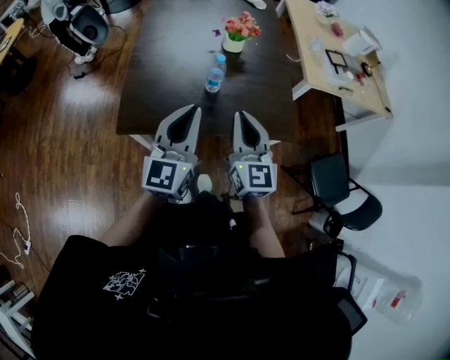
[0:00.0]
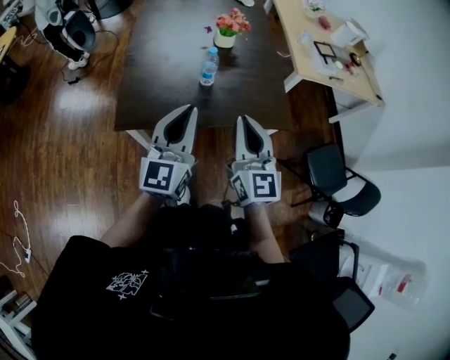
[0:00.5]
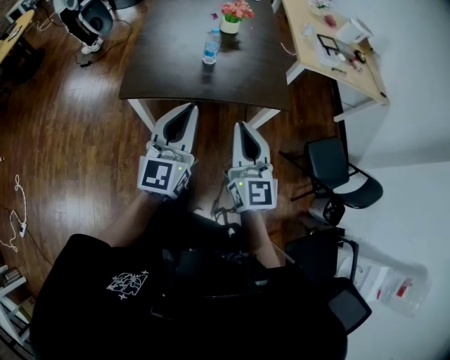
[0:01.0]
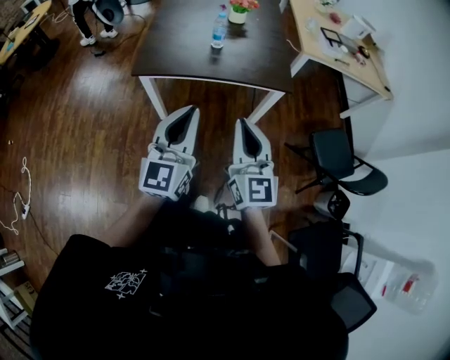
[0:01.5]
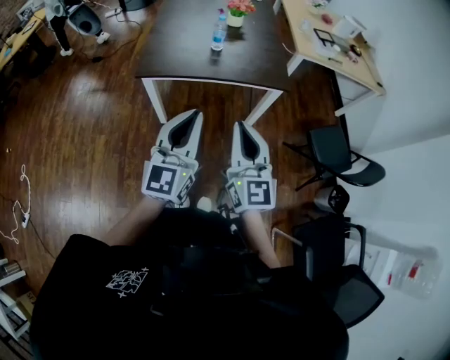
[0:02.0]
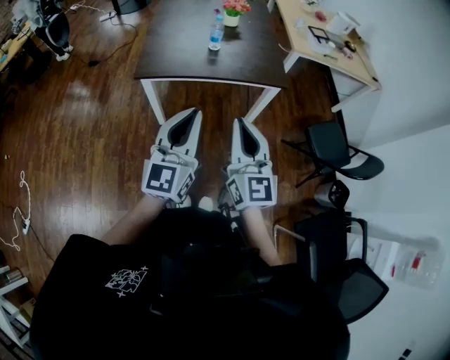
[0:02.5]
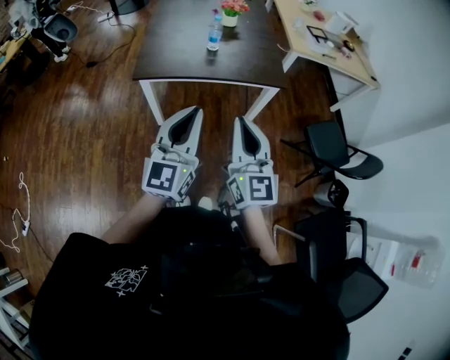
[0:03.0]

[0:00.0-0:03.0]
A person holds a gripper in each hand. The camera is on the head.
0:00.0 to 0:01.5: Both grippers move backward, some 30 cm.
0:01.5 to 0:03.0: The right gripper ends up about 5 cm from where it was; the left gripper shifts by approximately 5 cm.

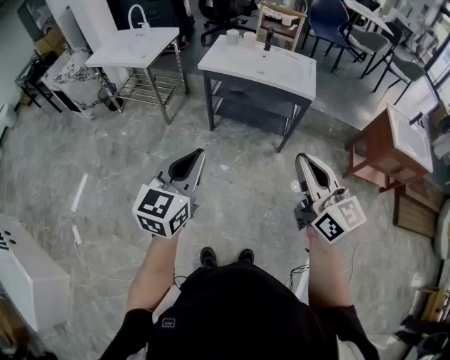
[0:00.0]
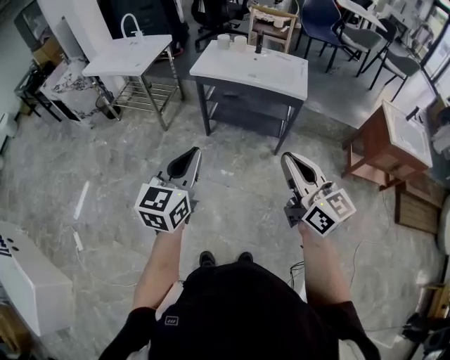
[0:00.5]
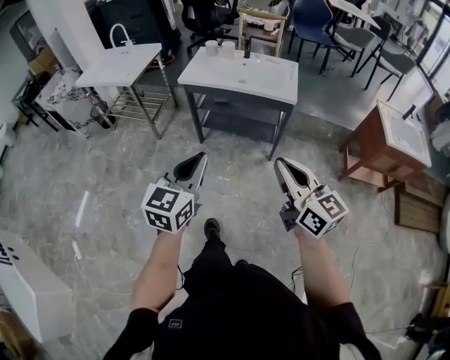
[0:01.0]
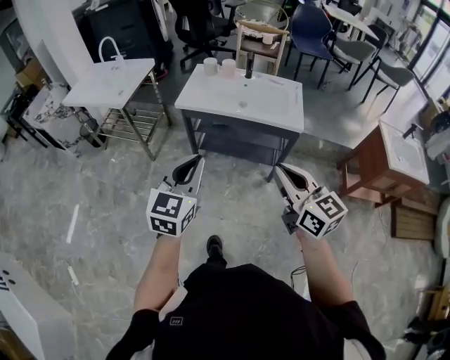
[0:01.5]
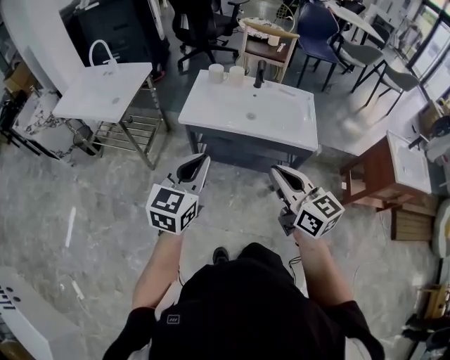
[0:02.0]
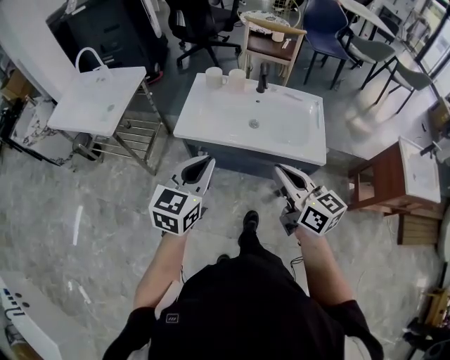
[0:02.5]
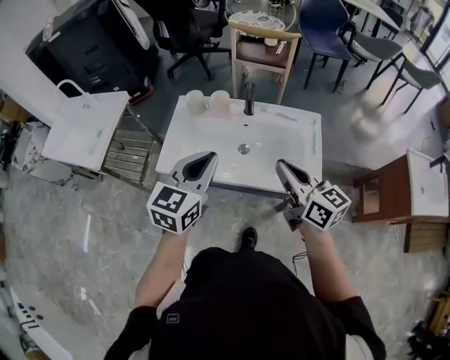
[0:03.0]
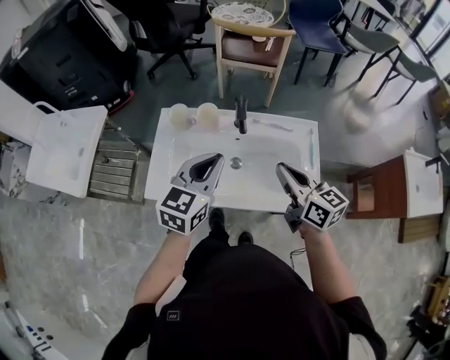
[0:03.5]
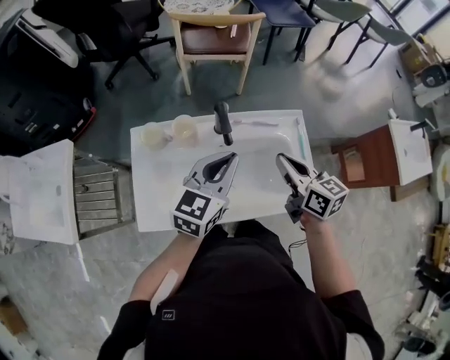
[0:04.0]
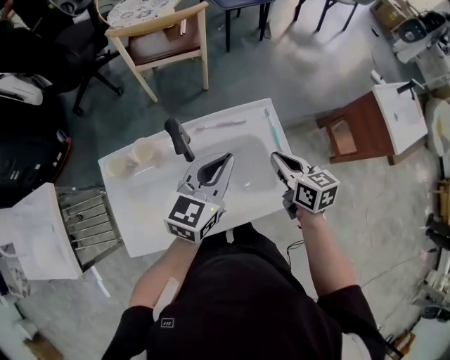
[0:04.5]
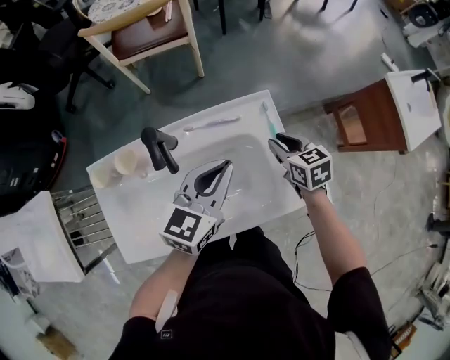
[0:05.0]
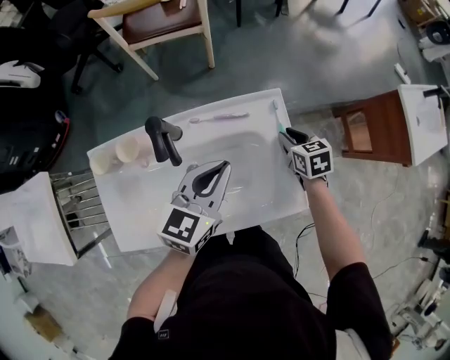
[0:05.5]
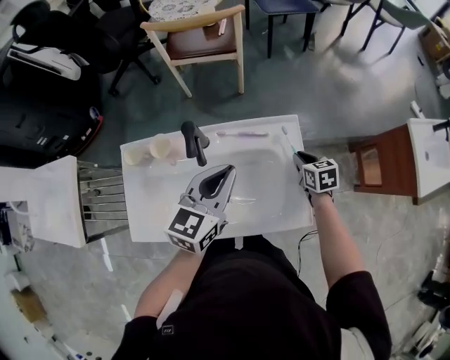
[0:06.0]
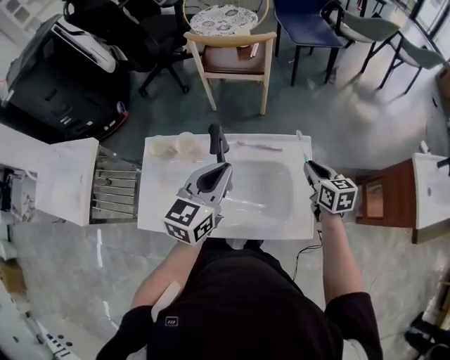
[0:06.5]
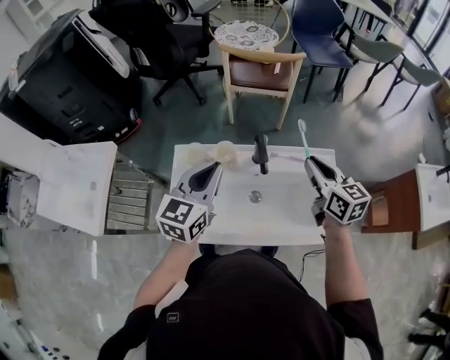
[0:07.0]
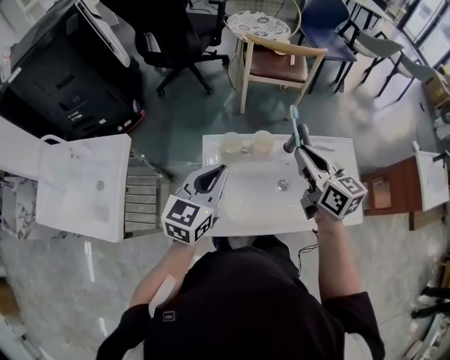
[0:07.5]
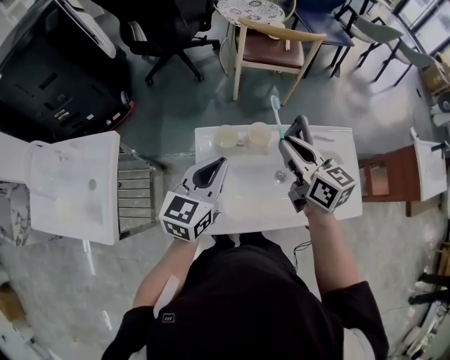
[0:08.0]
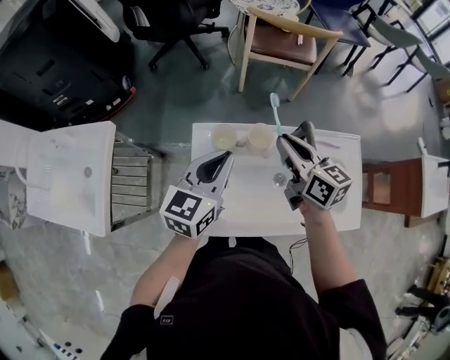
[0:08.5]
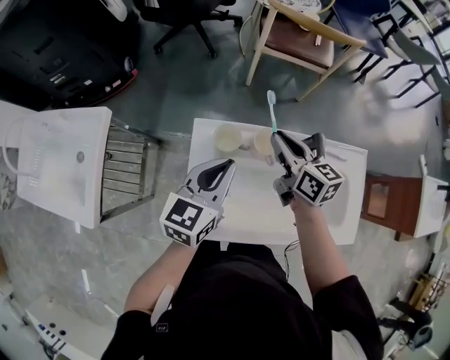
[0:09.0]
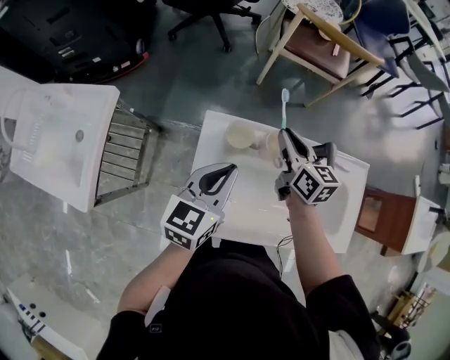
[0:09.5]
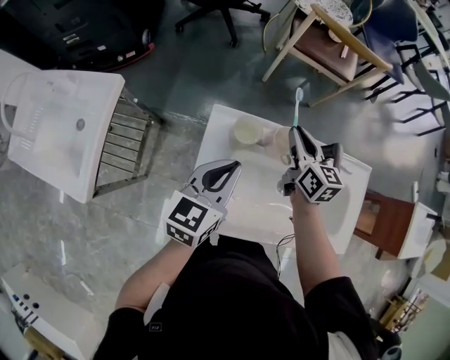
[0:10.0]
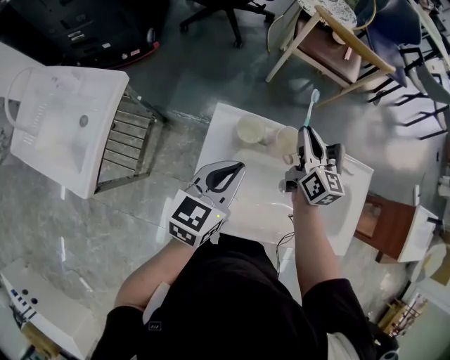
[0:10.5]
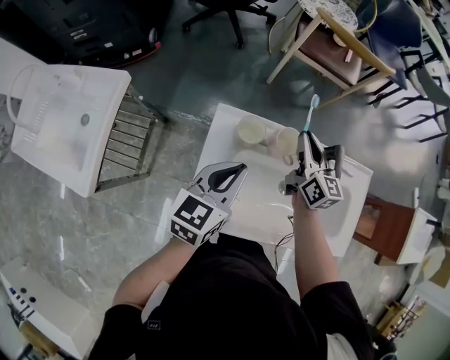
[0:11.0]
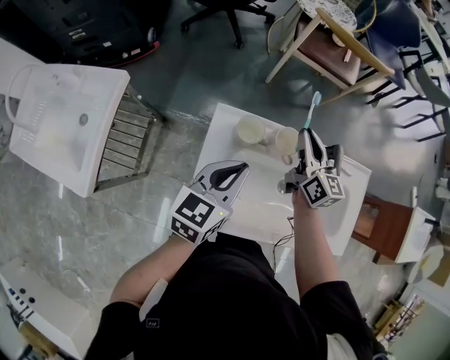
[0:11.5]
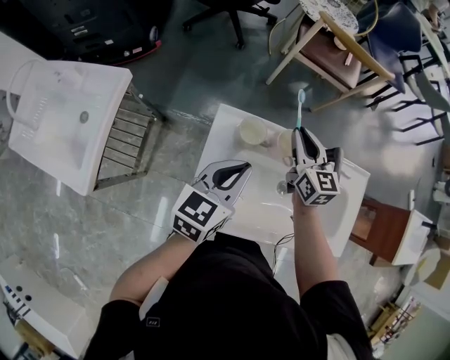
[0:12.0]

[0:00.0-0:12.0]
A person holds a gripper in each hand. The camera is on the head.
0:00.0 to 0:02.0: The two grippers go about 35 cm forward.
0:02.0 to 0:04.0: The pair of grippers is taken forward, approximately 50 cm. The left gripper changes its angle by about 30 degrees. Meanwhile the right gripper turns by roughly 30 degrees.
0:04.0 to 0:06.0: The right gripper moves downward, to the right and forward, some 30 cm, and turns by about 30 degrees; the left gripper moves to the right and forward, approximately 10 cm.
0:06.0 to 0:08.0: The left gripper moves to the left, some 35 cm; the right gripper travels to the left and upward by approximately 50 cm, and tilts its fingers about 40 degrees upward.
0:08.0 to 0:10.0: The right gripper moves downward and forward, roughly 20 cm. The left gripper shifts about 5 cm downward.
0:10.0 to 0:12.0: There are only small adjustments of the grippers.

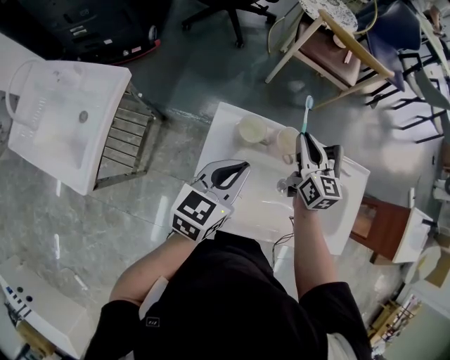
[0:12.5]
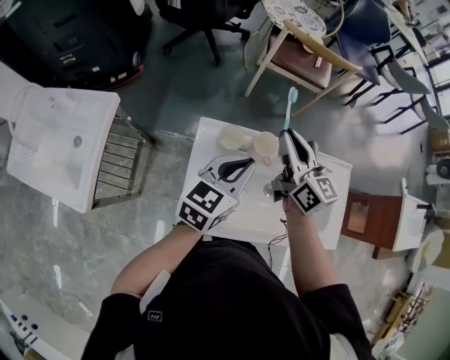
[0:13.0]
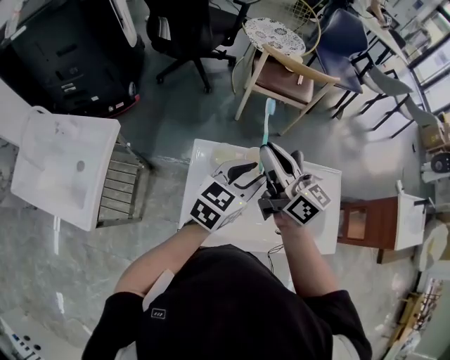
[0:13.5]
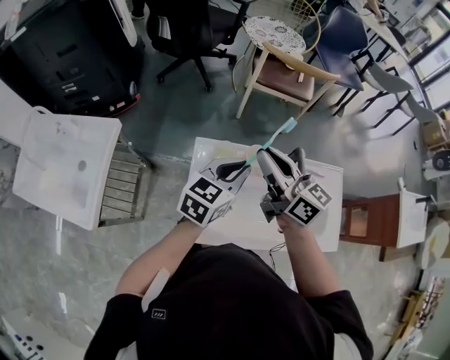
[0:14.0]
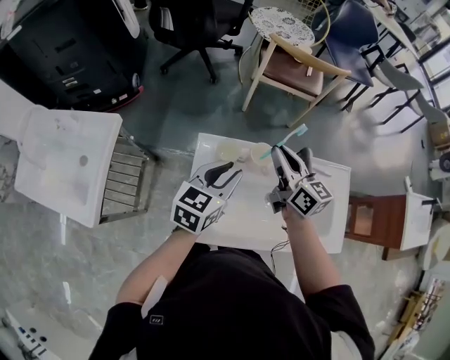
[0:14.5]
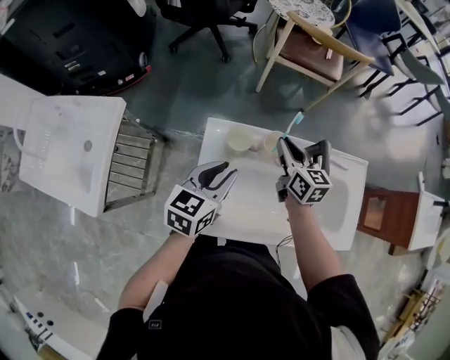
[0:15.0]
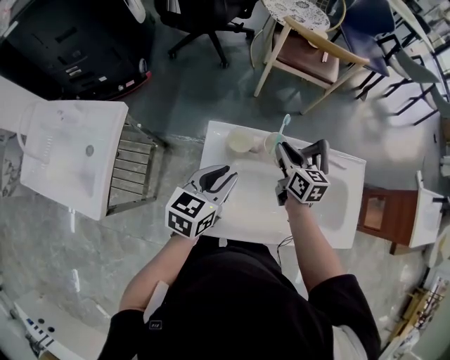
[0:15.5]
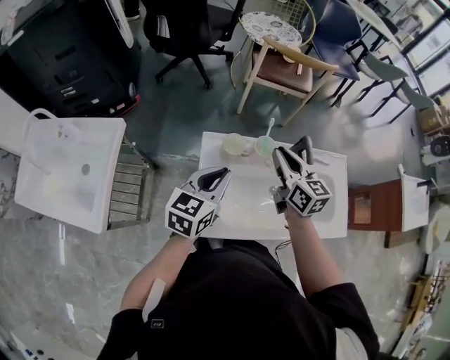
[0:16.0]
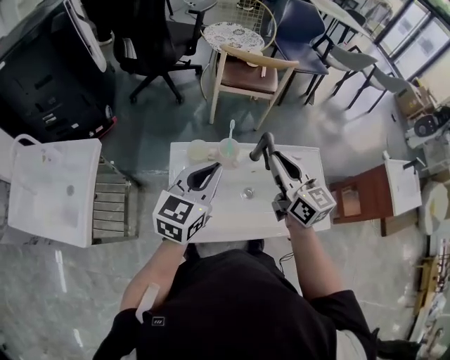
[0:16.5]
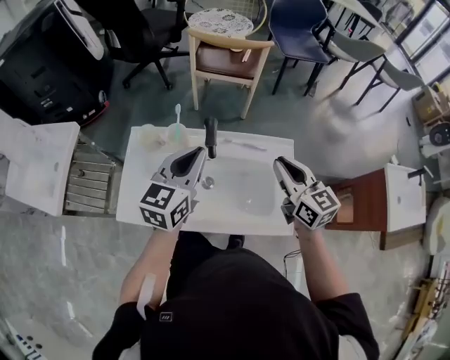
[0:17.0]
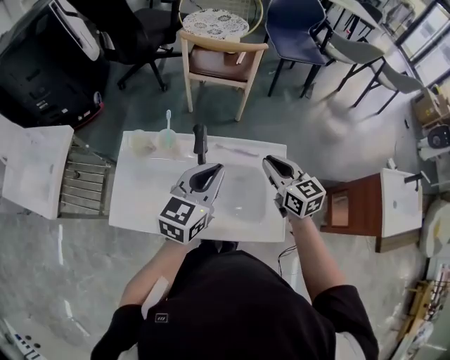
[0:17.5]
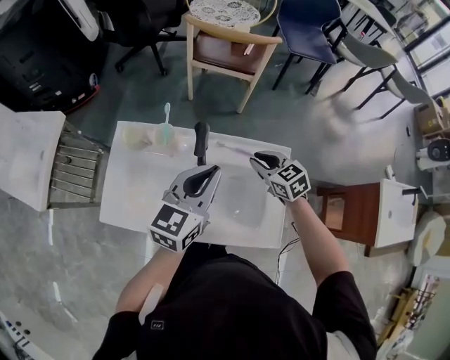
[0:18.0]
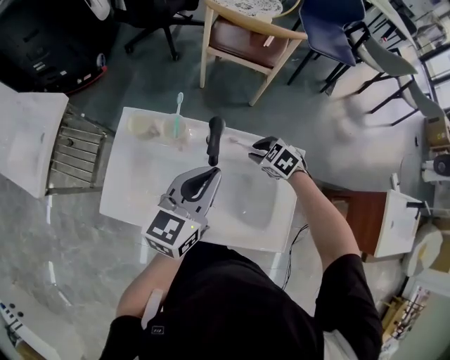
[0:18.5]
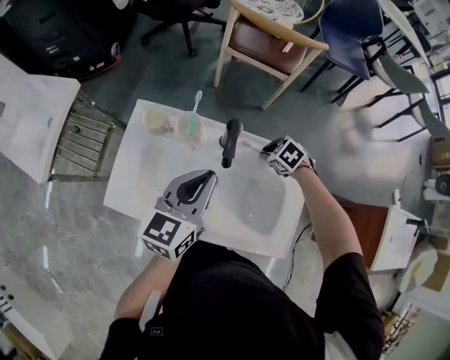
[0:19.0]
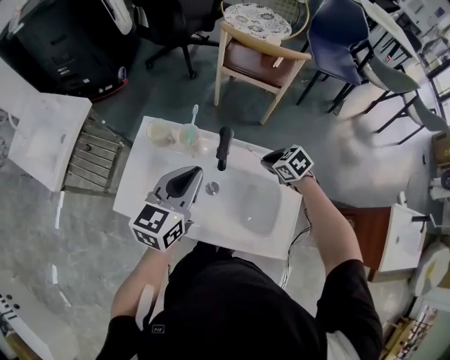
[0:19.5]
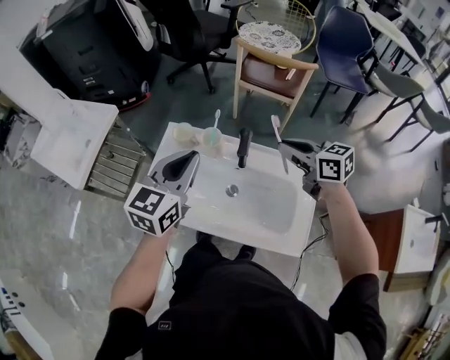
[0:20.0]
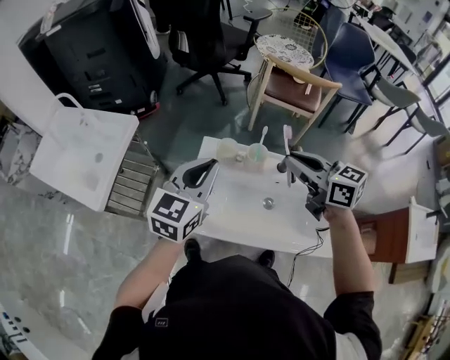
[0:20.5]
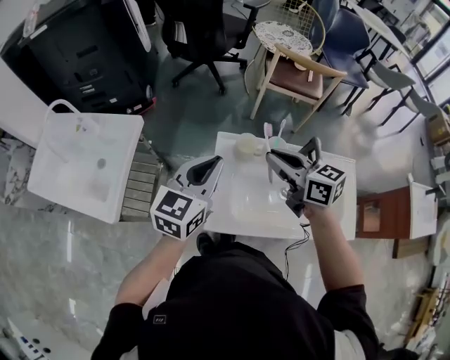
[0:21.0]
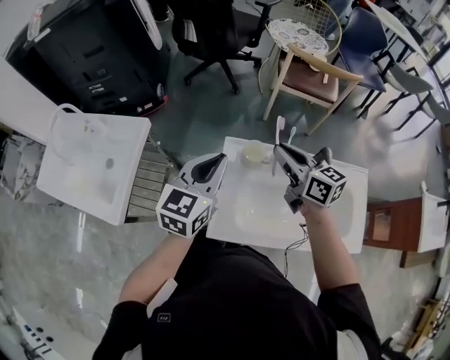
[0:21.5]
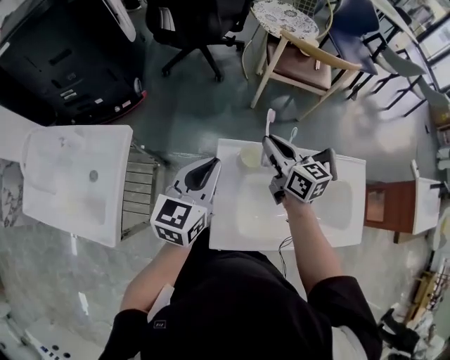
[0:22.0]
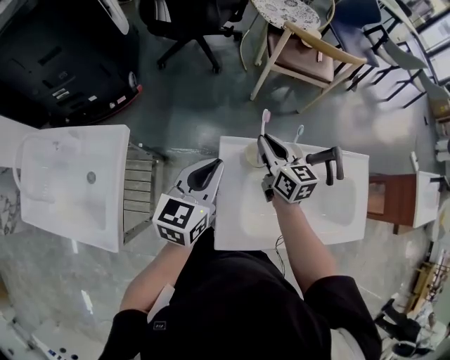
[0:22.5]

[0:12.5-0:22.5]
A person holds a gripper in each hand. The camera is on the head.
0:12.5 to 0:14.5: The left gripper reaches roughly 10 cm to the right, then returns, and opens. The right gripper is displaced upward by approximately 10 cm.
0:14.5 to 0:16.5: The right gripper moves backward, to the right and upward, about 15 cm, while the left gripper shifts approximately 10 cm upward and backward, and closes.
0:16.5 to 0:18.5: The right gripper travels downward by roughly 30 cm, and tips its fingers downward by roughly 60 degrees. The left gripper shifts by roughly 25 cm.
0:18.5 to 0:20.5: The left gripper moves to the left, some 25 cm, while the right gripper moves upward and to the left, roughly 40 cm, and angles its fingers upward, by approximately 50 degrees.
0:20.5 to 0:22.5: The left gripper moves forward, downward and to the left, approximately 20 cm. Meanwhile the right gripper travels downward, forward and to the left by some 30 cm, and changes its angle by about 30 degrees.

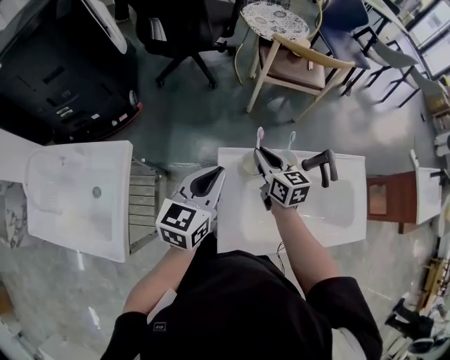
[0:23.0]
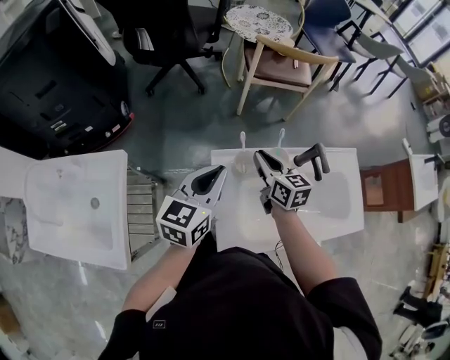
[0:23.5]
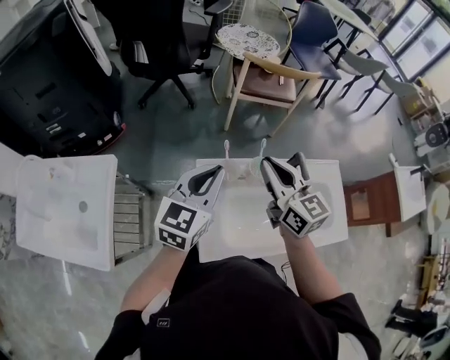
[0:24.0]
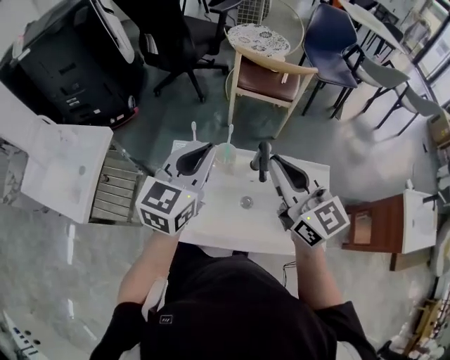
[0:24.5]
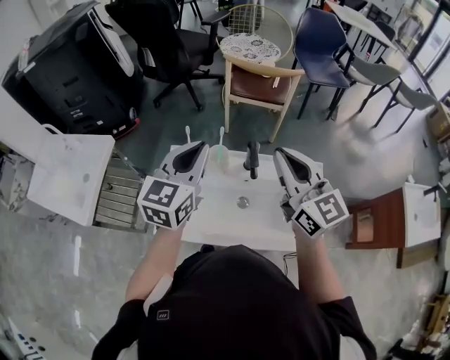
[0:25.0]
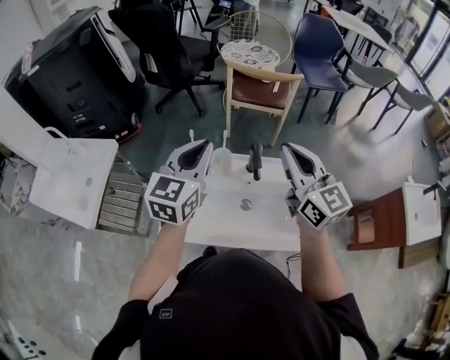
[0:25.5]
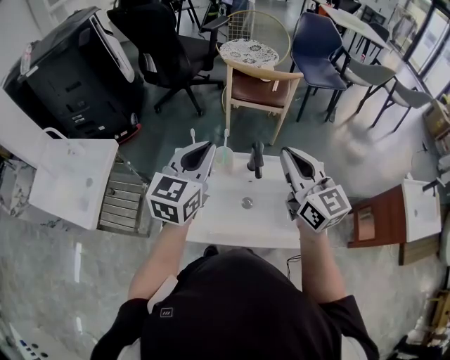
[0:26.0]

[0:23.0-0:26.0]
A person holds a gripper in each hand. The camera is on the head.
0:23.0 to 0:24.5: The right gripper travels upward, to the right and backward by approximately 35 cm, and changes its angle by approximately 30 degrees. The left gripper travels to the right and upward by some 25 cm.
0:24.5 to 0:26.0: The right gripper travels to the right by some 5 cm.
